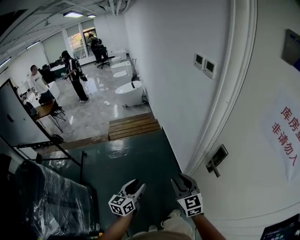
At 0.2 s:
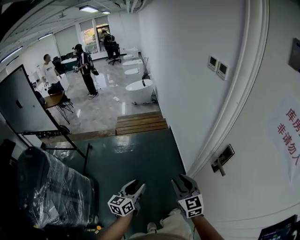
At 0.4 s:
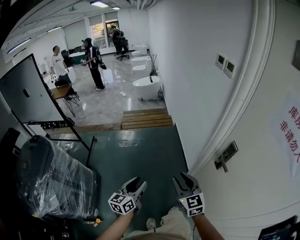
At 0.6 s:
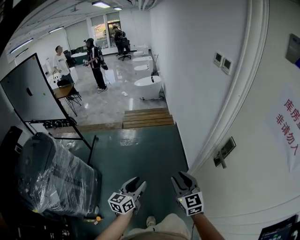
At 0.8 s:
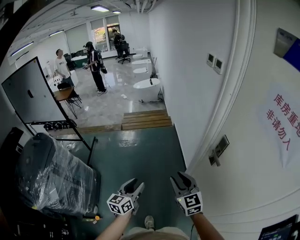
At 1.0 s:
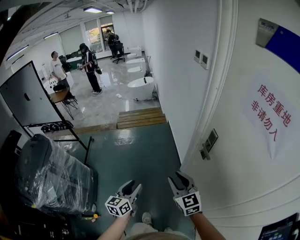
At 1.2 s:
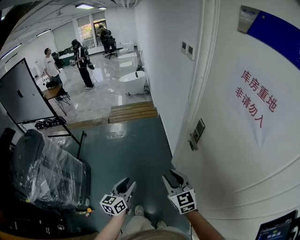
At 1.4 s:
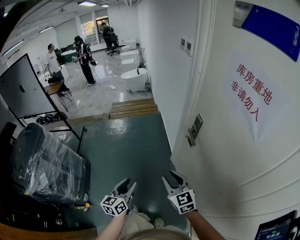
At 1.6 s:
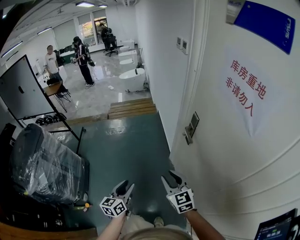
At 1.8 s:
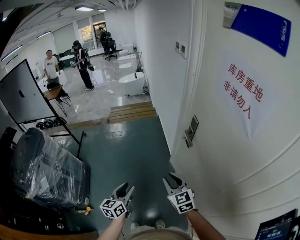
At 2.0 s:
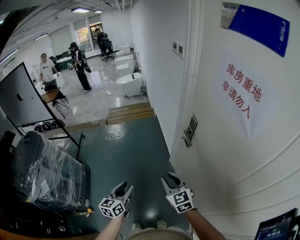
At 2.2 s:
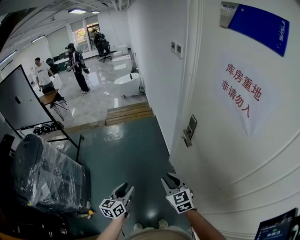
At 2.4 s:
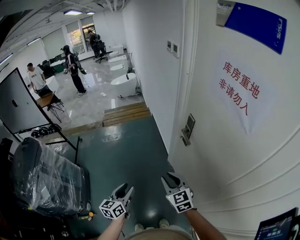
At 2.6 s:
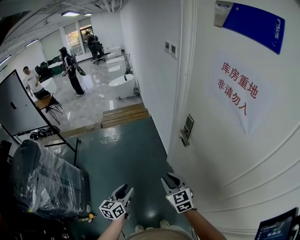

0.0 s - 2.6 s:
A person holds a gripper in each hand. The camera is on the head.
0.0 s - 1.2 s: Both grippers move backward, roughly 20 cm.
1.2 s - 2.6 s: The right gripper shifts by about 5 cm.

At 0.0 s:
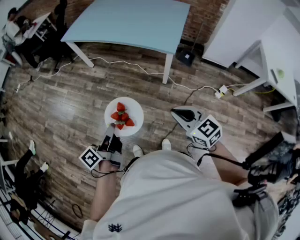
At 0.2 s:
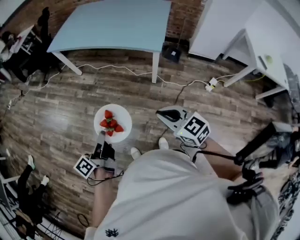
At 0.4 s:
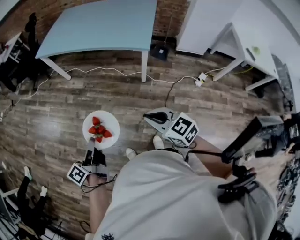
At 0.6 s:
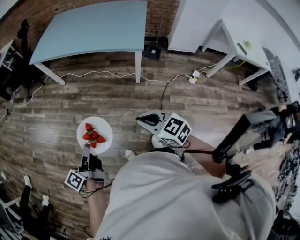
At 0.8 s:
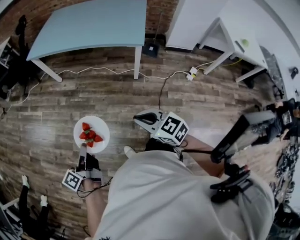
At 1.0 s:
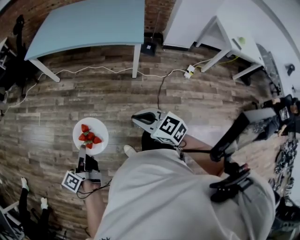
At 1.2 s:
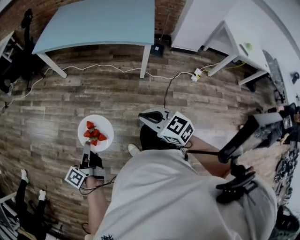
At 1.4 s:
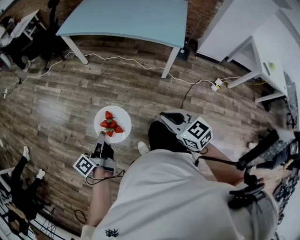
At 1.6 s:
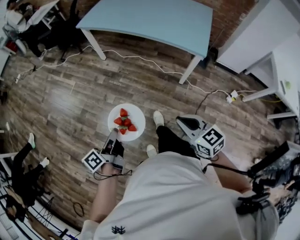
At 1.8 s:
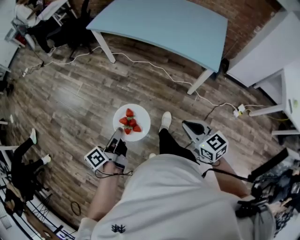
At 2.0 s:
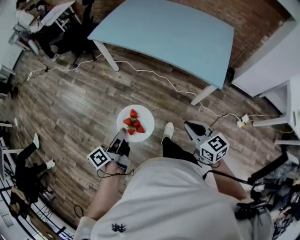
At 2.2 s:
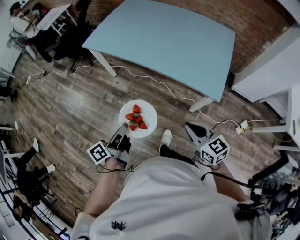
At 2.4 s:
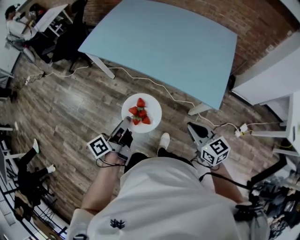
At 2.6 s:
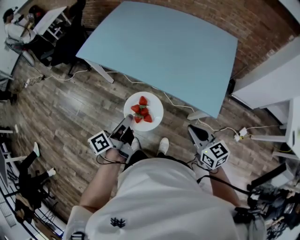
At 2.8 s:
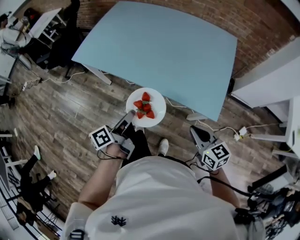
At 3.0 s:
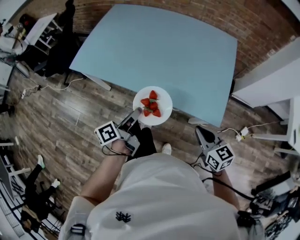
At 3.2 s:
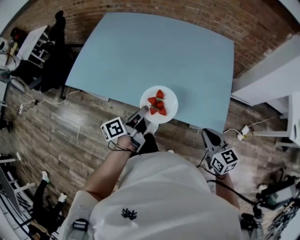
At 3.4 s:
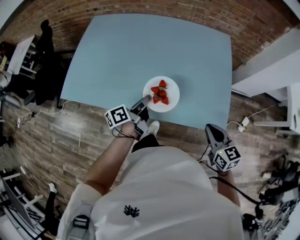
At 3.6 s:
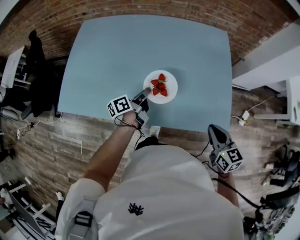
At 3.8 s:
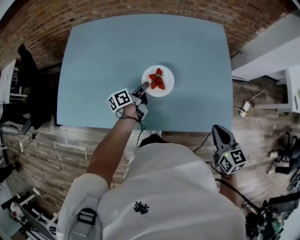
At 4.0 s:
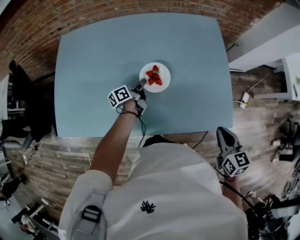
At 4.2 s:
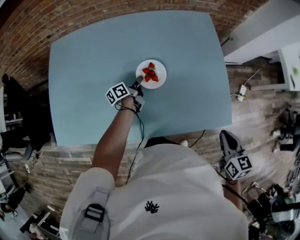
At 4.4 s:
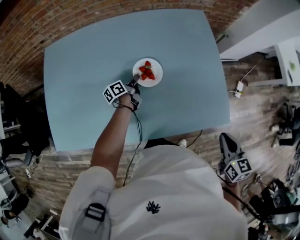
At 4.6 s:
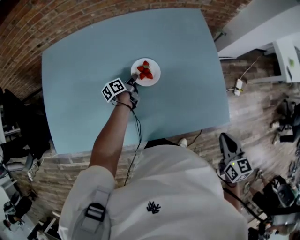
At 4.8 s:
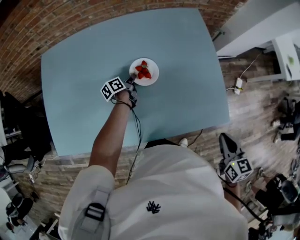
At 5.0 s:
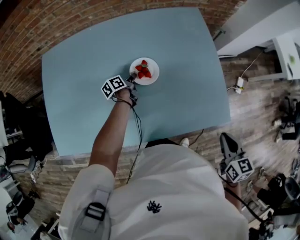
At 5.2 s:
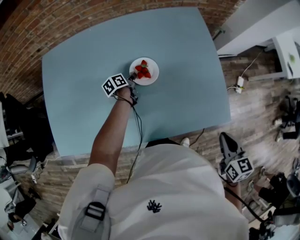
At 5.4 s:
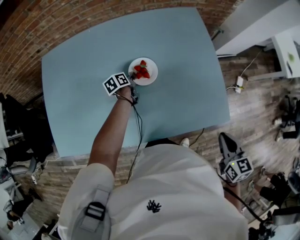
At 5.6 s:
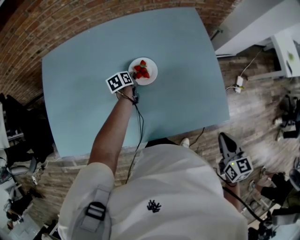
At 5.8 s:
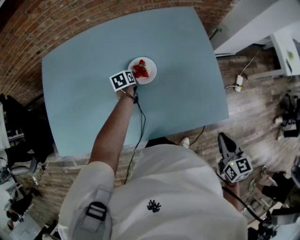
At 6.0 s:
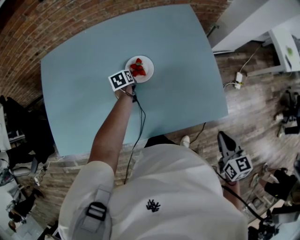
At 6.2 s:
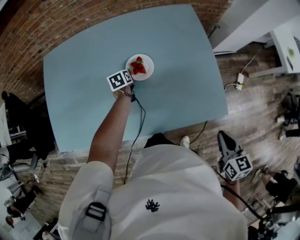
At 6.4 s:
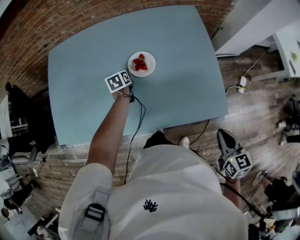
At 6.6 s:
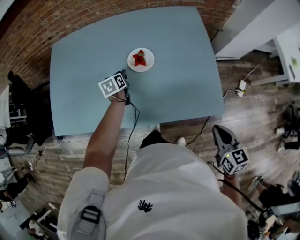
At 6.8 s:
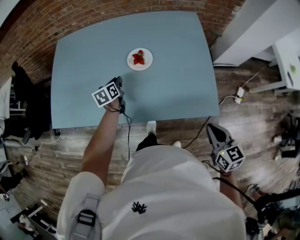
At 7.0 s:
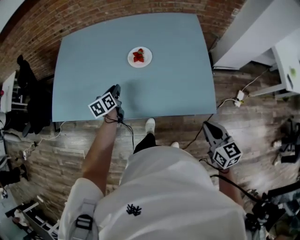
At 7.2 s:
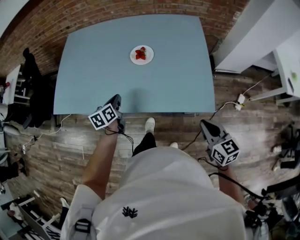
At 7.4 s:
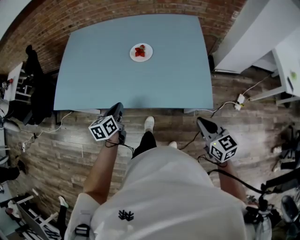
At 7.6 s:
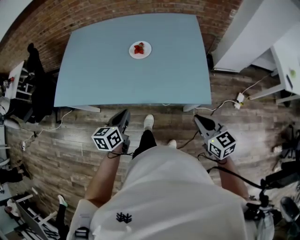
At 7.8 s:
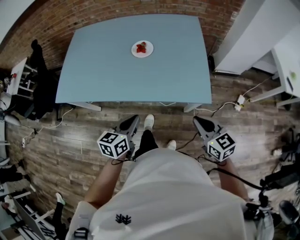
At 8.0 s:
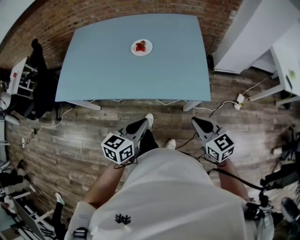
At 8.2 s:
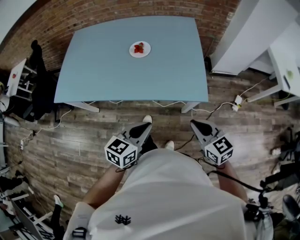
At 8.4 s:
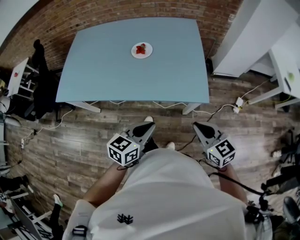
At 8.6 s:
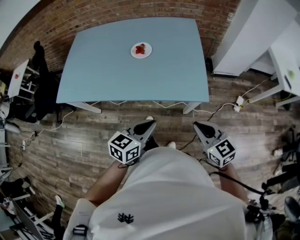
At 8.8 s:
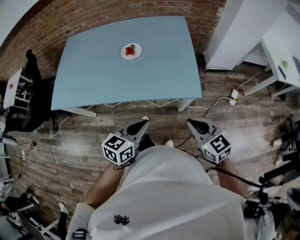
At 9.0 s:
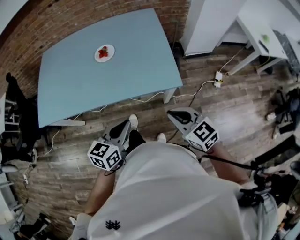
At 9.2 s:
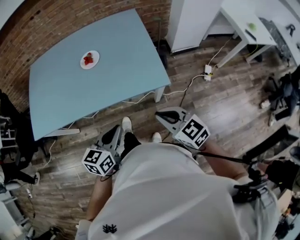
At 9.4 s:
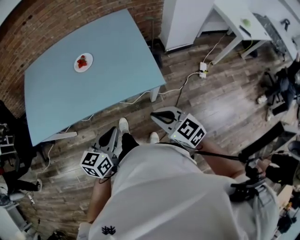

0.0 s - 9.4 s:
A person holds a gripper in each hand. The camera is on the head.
0.0 s - 1.6 s: Both grippers move to the left, approximately 20 cm.
1.6 s - 3.2 s: The pair of grippers is taken forward, about 60 cm. The right gripper swivels some 30 degrees. The left gripper swivels roughly 20 degrees.
3.2 s - 4.8 s: The left gripper ends up about 40 cm from where it was, and swivels about 30 degrees. The right gripper changes place by roughly 5 cm, and rotates some 40 degrees.
4.8 s - 6.2 s: The left gripper swivels some 40 degrees.
6.2 s - 7.8 s: The right gripper travels backward by approximately 10 cm, and swivels approximately 30 degrees; the left gripper goes approximately 50 cm backward and upward, changes its angle by approximately 30 degrees, and closes up.
7.8 s - 9.4 s: The left gripper heads to the right, covering some 10 cm.

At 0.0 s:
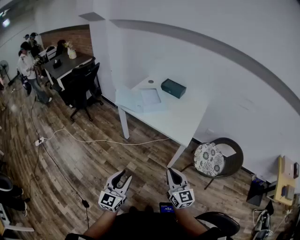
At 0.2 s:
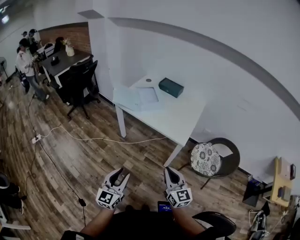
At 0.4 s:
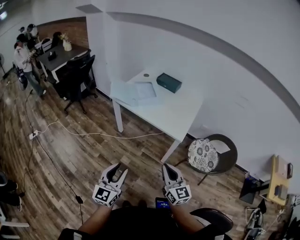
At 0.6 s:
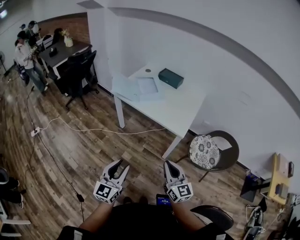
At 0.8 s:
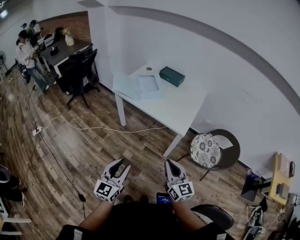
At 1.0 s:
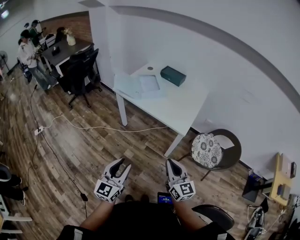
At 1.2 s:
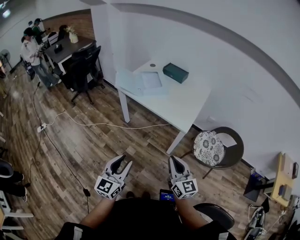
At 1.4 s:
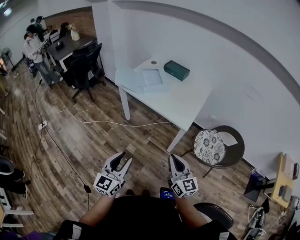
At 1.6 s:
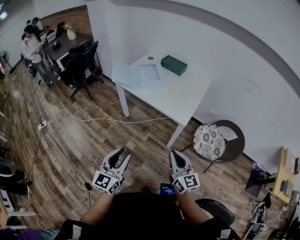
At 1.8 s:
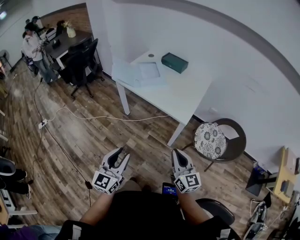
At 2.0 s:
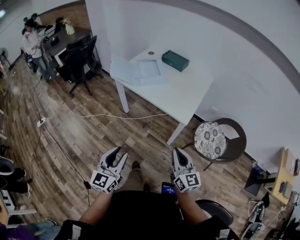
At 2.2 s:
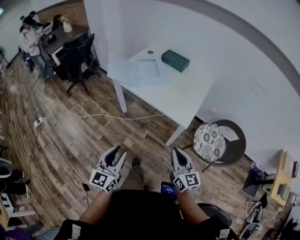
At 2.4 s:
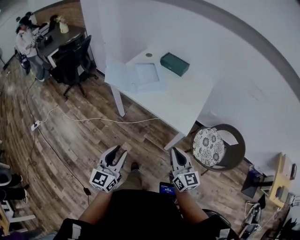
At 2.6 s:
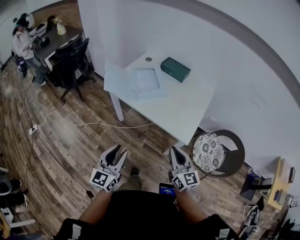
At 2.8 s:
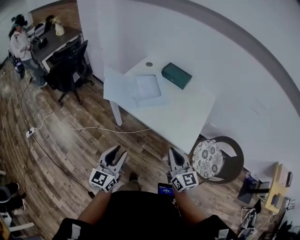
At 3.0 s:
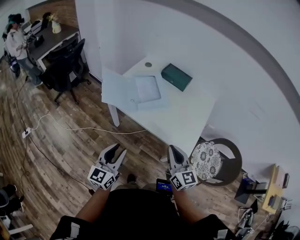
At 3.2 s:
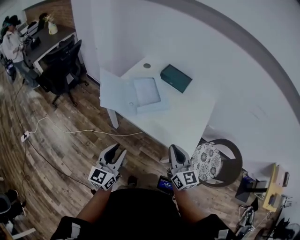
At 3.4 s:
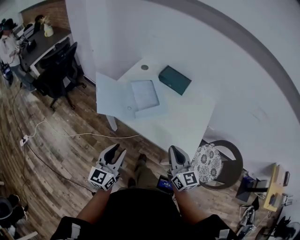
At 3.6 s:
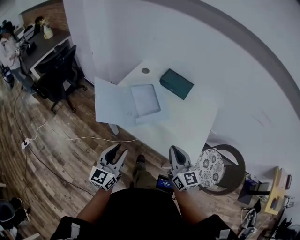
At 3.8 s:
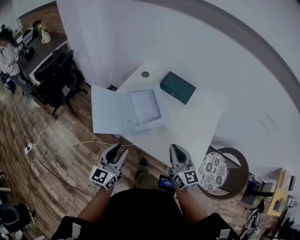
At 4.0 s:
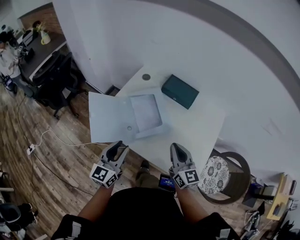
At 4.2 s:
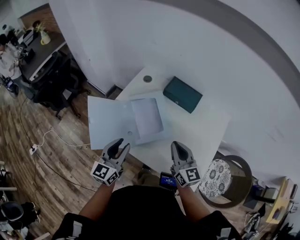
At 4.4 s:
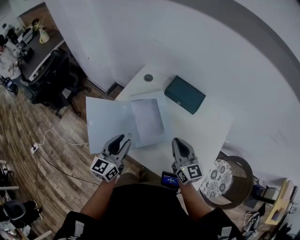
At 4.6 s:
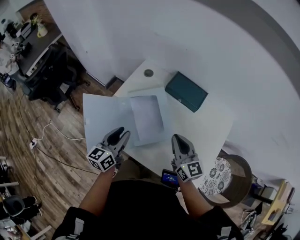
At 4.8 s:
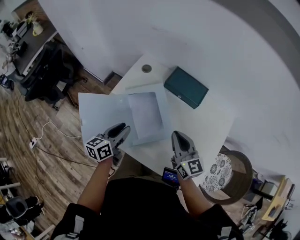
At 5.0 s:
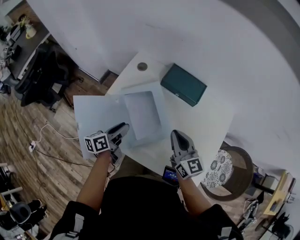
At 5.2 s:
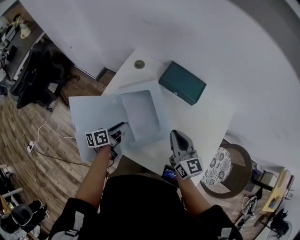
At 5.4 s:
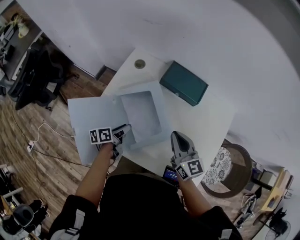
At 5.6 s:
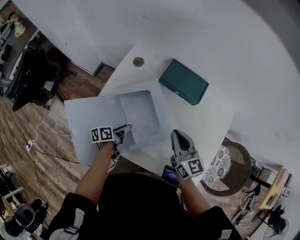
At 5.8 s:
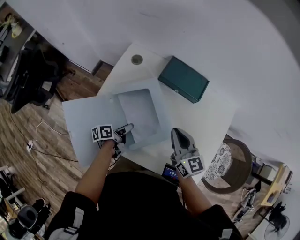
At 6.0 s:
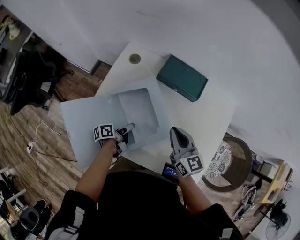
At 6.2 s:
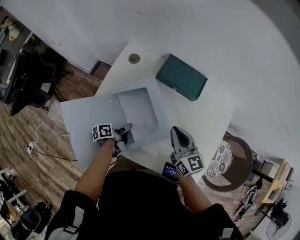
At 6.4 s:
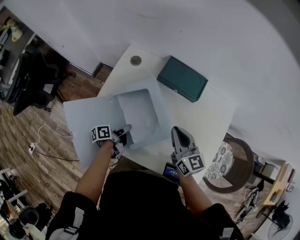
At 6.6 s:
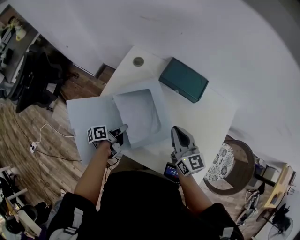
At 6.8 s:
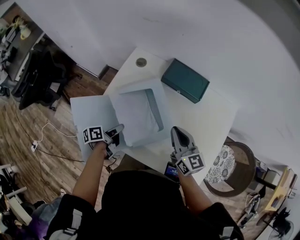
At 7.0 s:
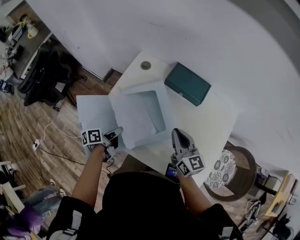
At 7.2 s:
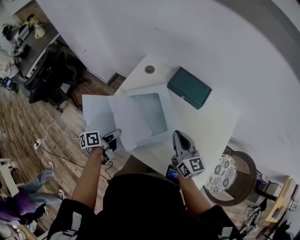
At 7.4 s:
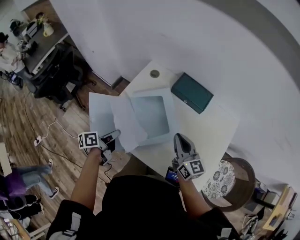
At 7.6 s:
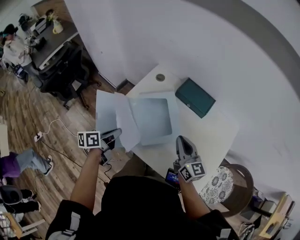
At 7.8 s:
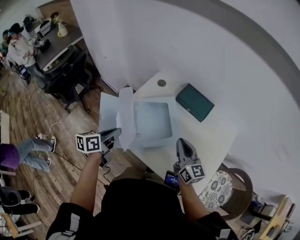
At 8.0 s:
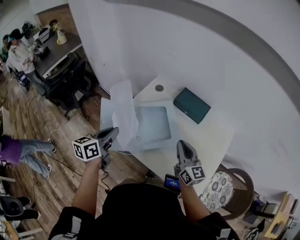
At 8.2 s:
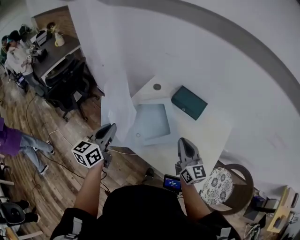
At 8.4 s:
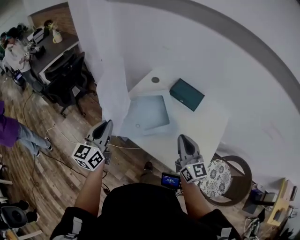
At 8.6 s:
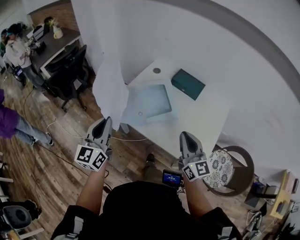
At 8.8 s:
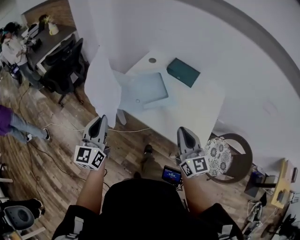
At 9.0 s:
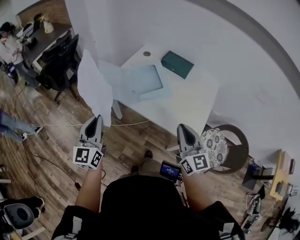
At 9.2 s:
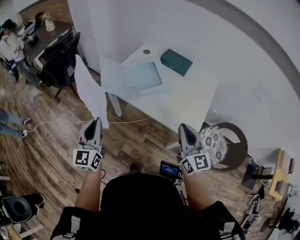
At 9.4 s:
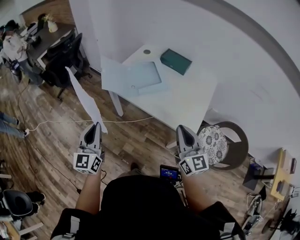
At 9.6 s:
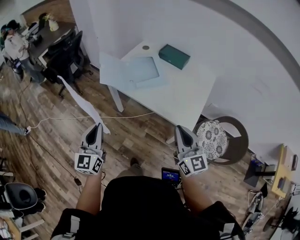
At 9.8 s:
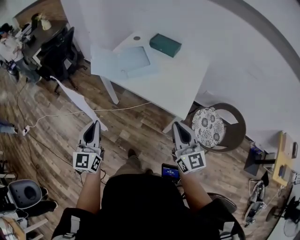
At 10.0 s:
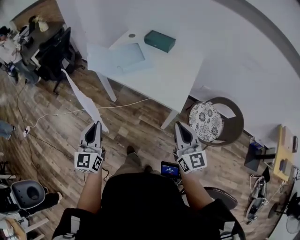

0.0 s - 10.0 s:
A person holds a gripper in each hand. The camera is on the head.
0.0 s - 1.4 s: The grippers stay close to where they were, moving slightly.
1.4 s - 2.8 s: Both grippers travel together forward, approximately 25 cm.
2.8 s - 4.2 s: Both grippers travel together forward, approximately 35 cm.
4.2 s - 5.8 s: The left gripper goes some 30 cm downward and forward, and rolls counterclockwise, seen from behind, by approximately 60 degrees, while the right gripper goes roughly 15 cm forward and downward.
5.8 s - 7.2 s: The left gripper heads upward, to the left and backward, covering some 15 cm, and closes.
7.2 s - 8.6 s: The right gripper goes roughly 25 cm backward and upward, while the left gripper goes some 35 cm upward and backward, and angles its fingers upward, by roughly 30 degrees.
8.6 s - 10.0 s: The two grippers go some 30 cm backward.

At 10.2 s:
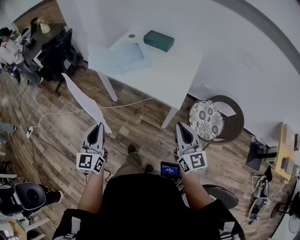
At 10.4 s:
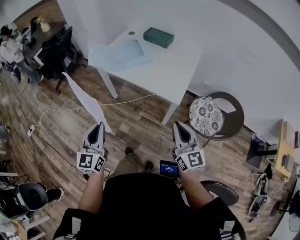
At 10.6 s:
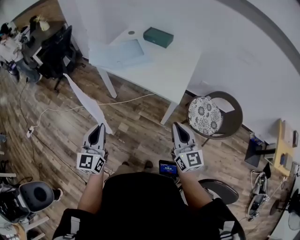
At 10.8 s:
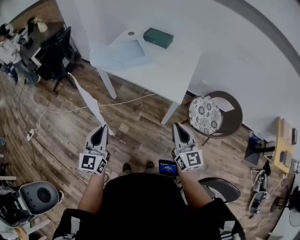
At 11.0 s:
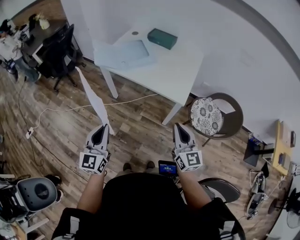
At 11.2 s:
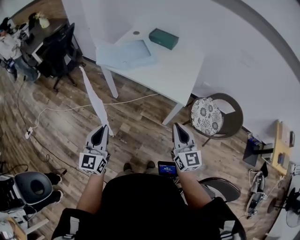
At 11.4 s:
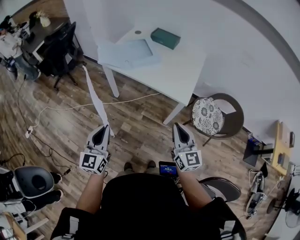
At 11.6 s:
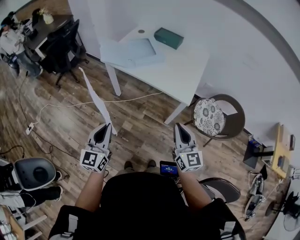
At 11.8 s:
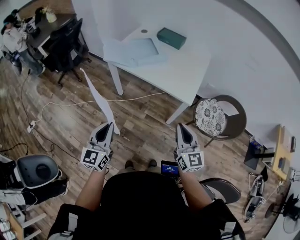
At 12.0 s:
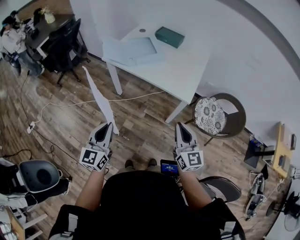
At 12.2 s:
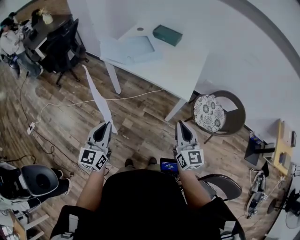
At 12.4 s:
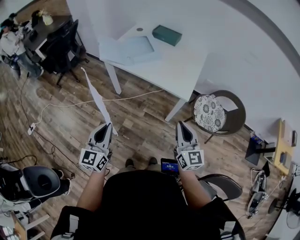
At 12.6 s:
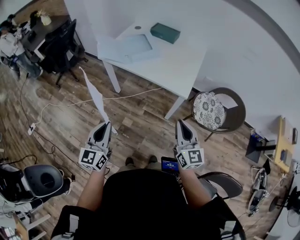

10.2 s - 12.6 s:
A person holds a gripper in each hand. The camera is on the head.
10.2 s - 11.4 s: Both grippers move to the left, approximately 5 cm.
11.4 s - 12.6 s: There are only small adjustments of the grippers.
